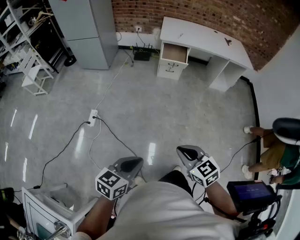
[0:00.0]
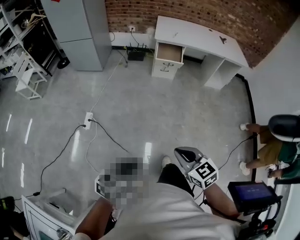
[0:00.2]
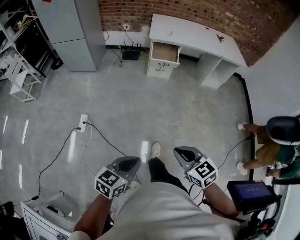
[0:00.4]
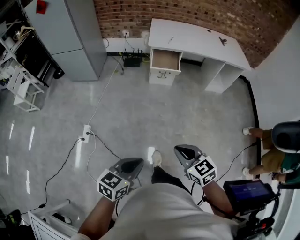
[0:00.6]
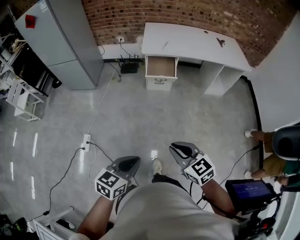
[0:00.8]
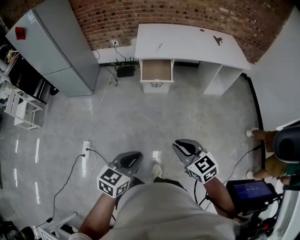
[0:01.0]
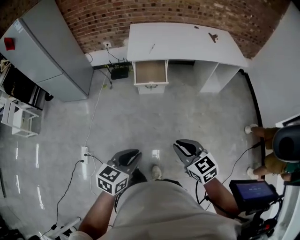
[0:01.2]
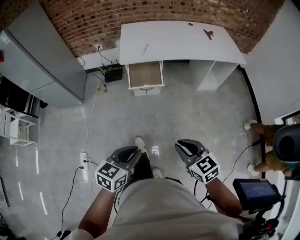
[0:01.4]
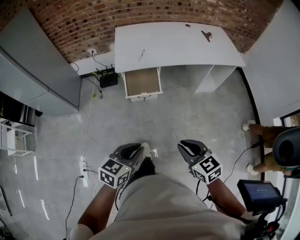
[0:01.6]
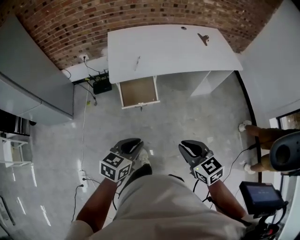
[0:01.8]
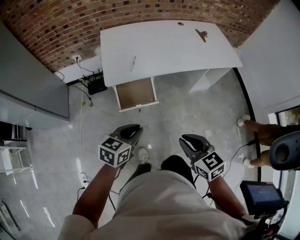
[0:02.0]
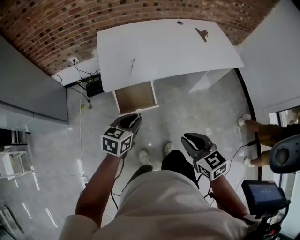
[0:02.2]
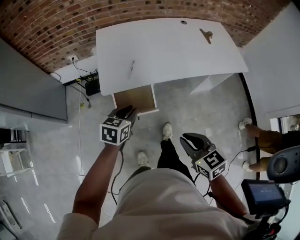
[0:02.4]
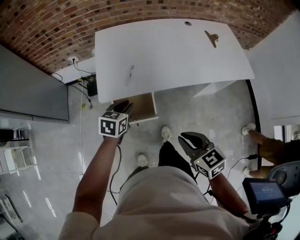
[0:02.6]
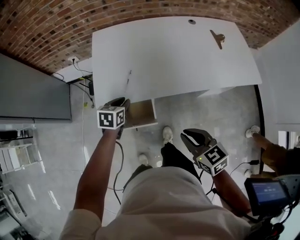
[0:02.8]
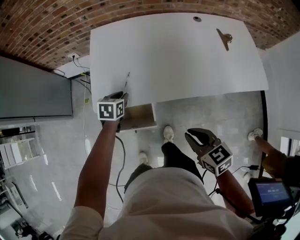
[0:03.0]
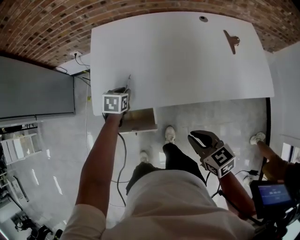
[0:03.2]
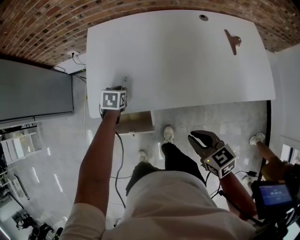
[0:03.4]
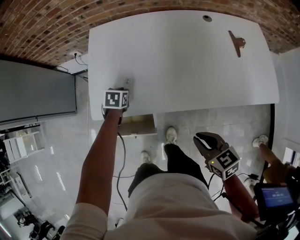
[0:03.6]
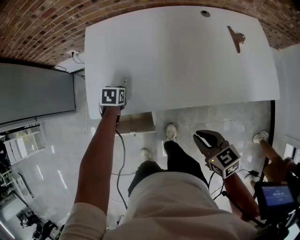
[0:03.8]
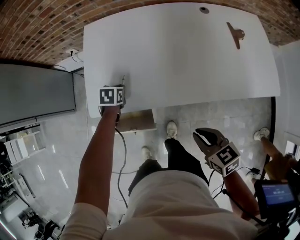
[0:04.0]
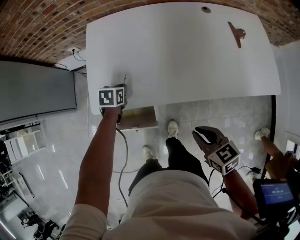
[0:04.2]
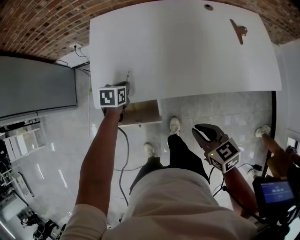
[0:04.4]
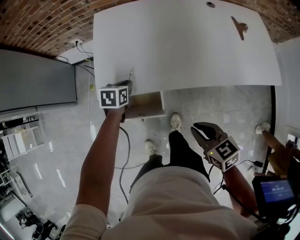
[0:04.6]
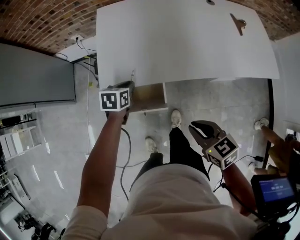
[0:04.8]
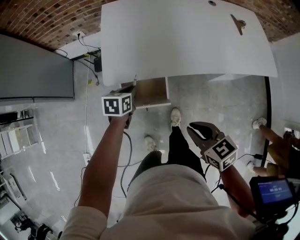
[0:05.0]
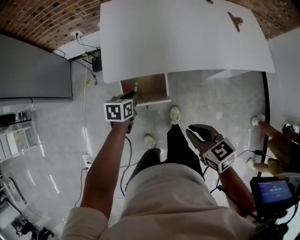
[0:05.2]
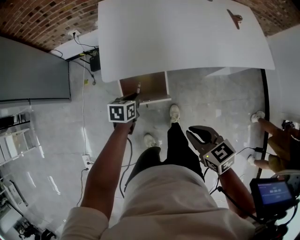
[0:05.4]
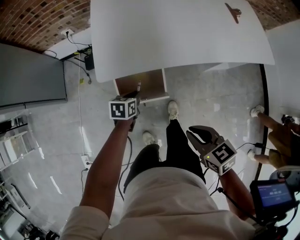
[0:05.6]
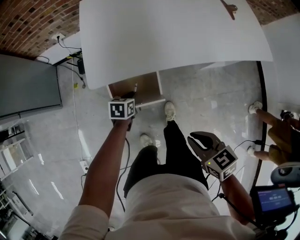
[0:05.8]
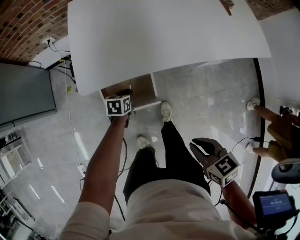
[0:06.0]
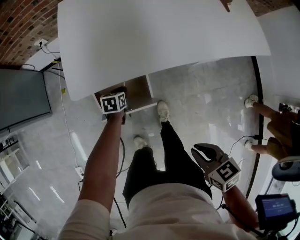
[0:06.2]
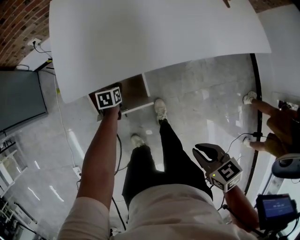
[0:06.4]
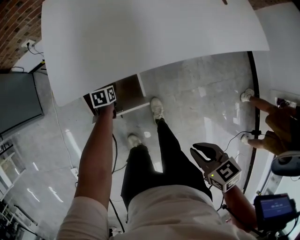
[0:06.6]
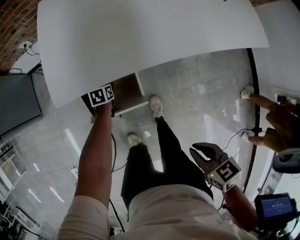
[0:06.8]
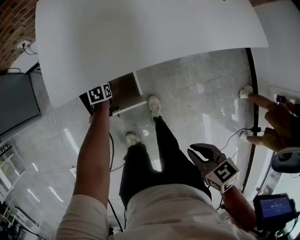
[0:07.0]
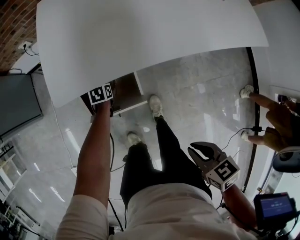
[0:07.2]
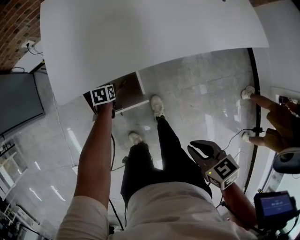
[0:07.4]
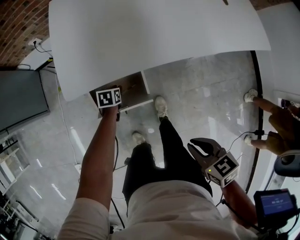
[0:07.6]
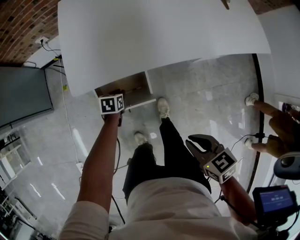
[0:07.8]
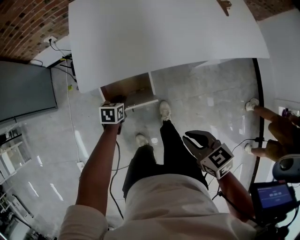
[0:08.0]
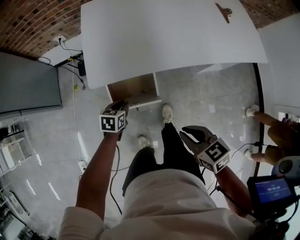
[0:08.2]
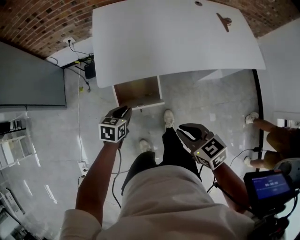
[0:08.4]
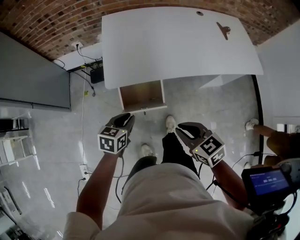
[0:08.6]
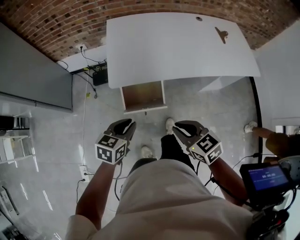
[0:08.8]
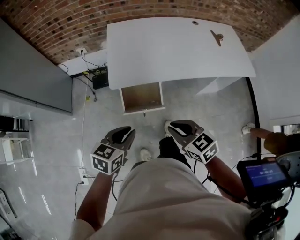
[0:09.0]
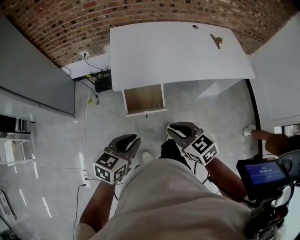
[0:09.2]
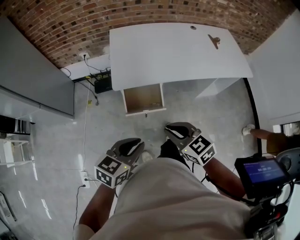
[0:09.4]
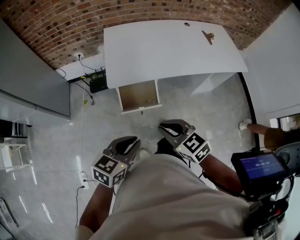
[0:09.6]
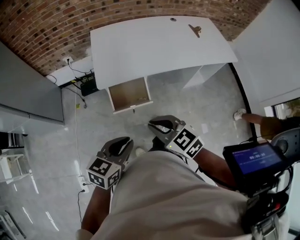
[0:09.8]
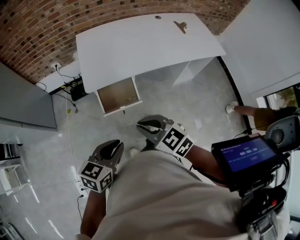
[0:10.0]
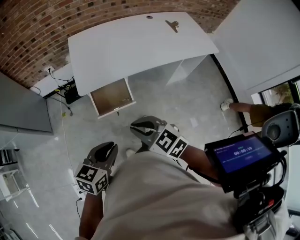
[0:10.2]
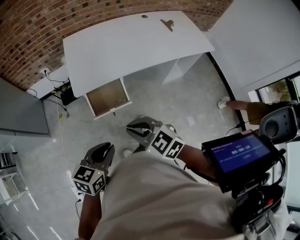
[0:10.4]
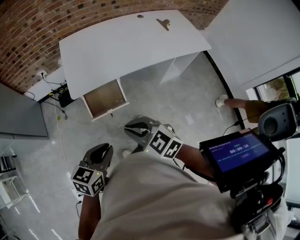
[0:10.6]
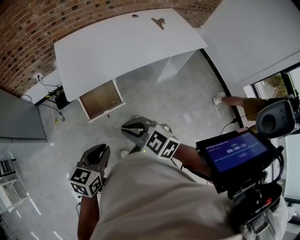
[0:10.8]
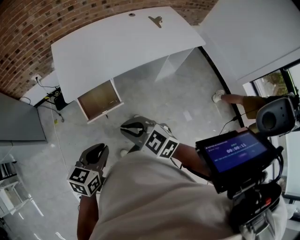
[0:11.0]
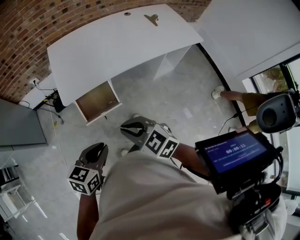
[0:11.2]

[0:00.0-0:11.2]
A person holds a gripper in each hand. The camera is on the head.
0:00.0 to 0:01.6: Both grippers are carried forward, about 50 cm.
0:01.6 to 0:03.2: The pair of grippers is taken approximately 60 cm. The left gripper rotates about 30 degrees.
0:03.2 to 0:04.8: The left gripper shifts roughly 10 cm backward and to the left; the right gripper goes some 10 cm to the left.
0:04.8 to 0:06.4: The right gripper moves backward and downward, approximately 15 cm, and swivels some 20 degrees; the left gripper heads downward, covering roughly 25 cm.
0:06.4 to 0:08.0: The right gripper shifts by roughly 5 cm. Meanwhile the left gripper travels upward and backward by approximately 15 cm.
0:08.0 to 0:09.6: The left gripper moves upward and backward, approximately 50 cm, and swivels about 30 degrees, while the right gripper travels upward, to the left and backward by some 20 cm, and changes its angle by about 30 degrees.
0:09.6 to 0:11.2: The left gripper shifts by about 5 cm.

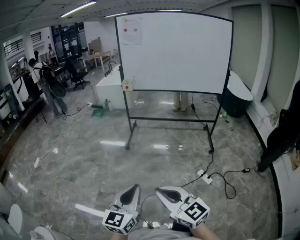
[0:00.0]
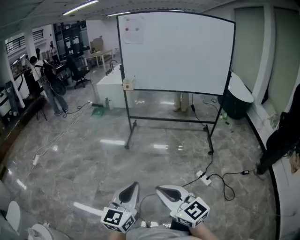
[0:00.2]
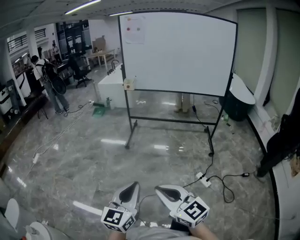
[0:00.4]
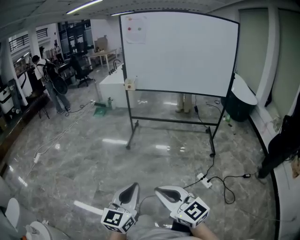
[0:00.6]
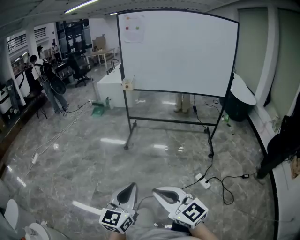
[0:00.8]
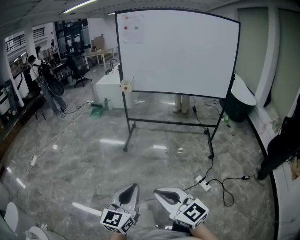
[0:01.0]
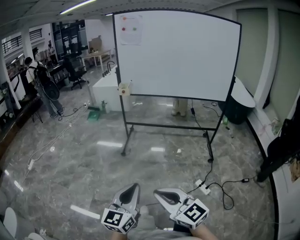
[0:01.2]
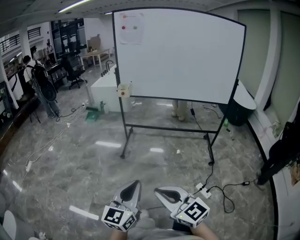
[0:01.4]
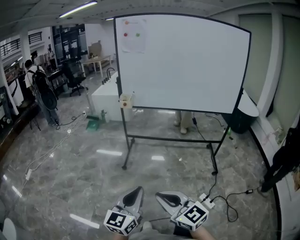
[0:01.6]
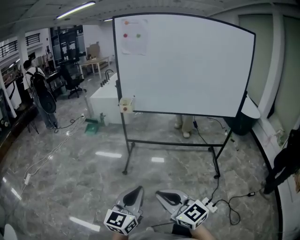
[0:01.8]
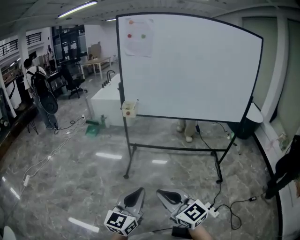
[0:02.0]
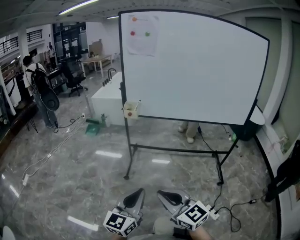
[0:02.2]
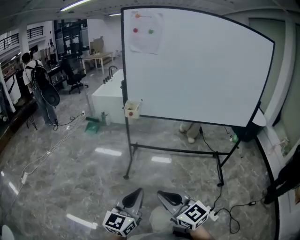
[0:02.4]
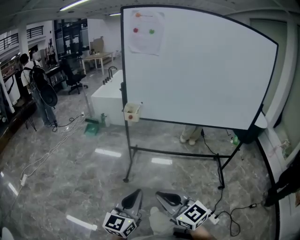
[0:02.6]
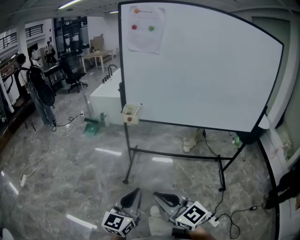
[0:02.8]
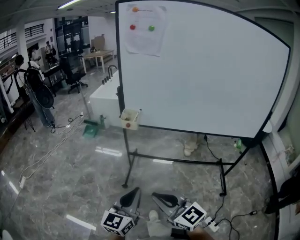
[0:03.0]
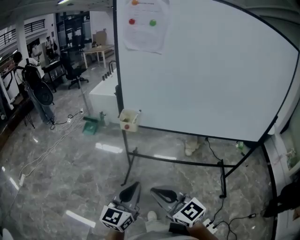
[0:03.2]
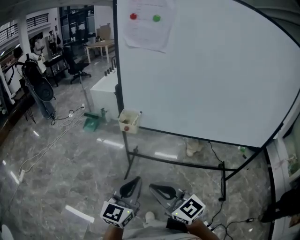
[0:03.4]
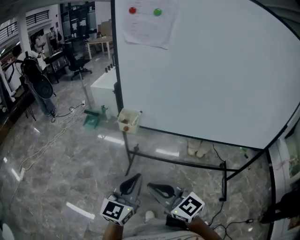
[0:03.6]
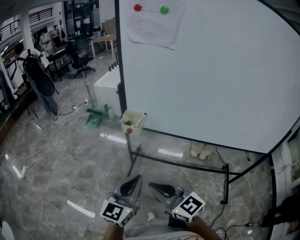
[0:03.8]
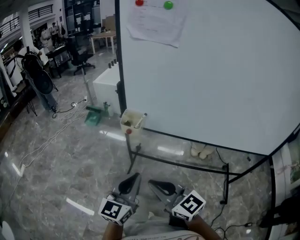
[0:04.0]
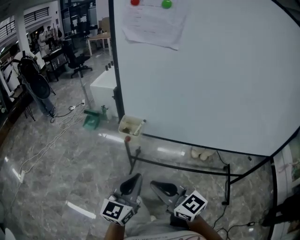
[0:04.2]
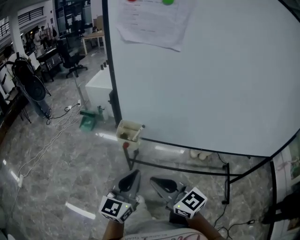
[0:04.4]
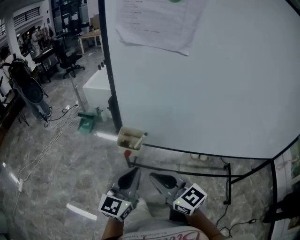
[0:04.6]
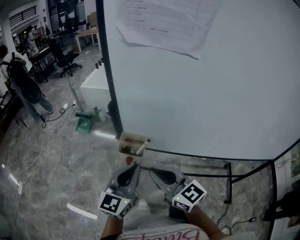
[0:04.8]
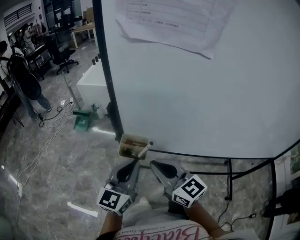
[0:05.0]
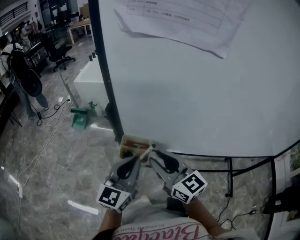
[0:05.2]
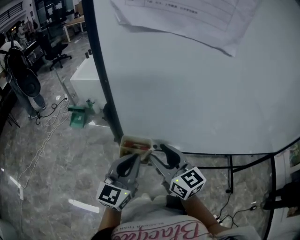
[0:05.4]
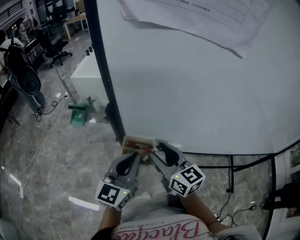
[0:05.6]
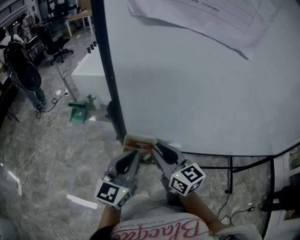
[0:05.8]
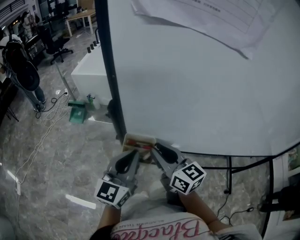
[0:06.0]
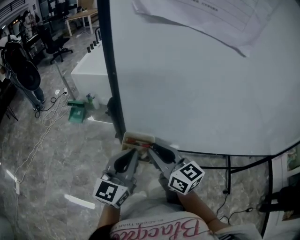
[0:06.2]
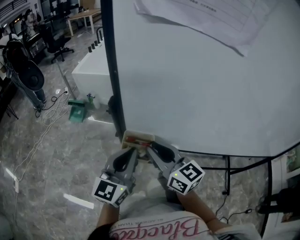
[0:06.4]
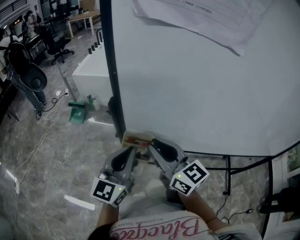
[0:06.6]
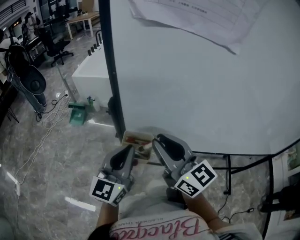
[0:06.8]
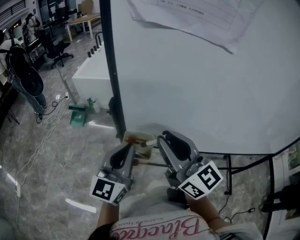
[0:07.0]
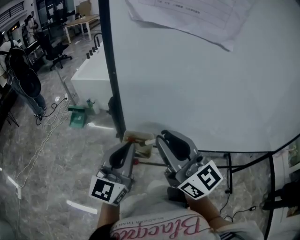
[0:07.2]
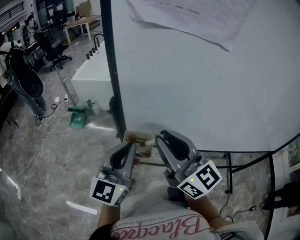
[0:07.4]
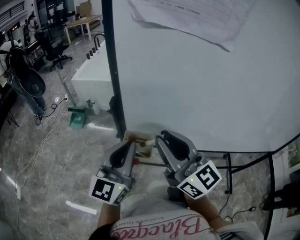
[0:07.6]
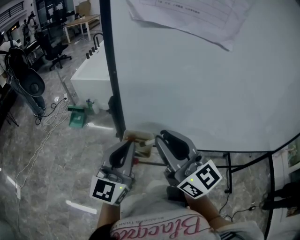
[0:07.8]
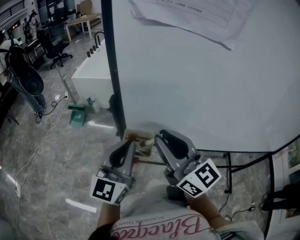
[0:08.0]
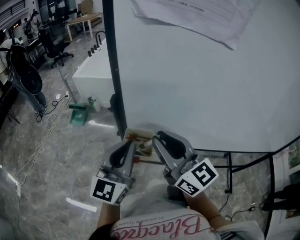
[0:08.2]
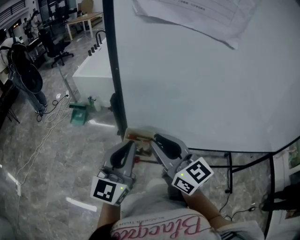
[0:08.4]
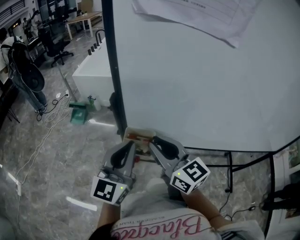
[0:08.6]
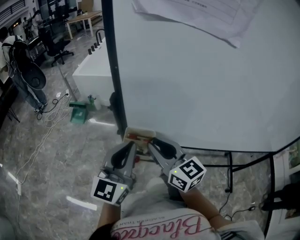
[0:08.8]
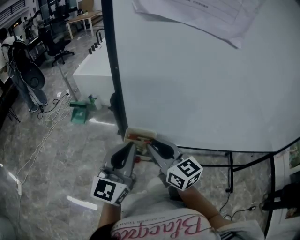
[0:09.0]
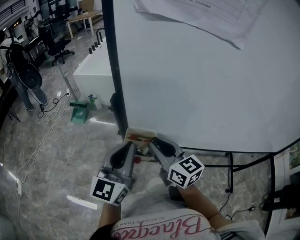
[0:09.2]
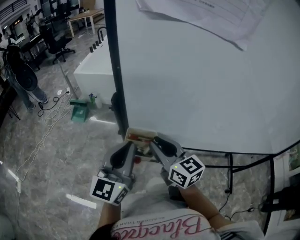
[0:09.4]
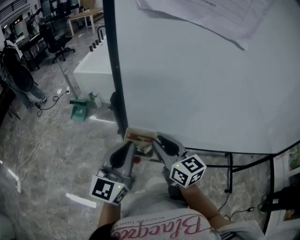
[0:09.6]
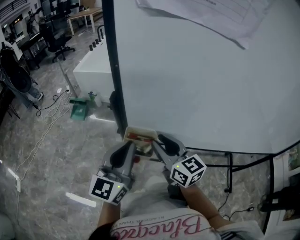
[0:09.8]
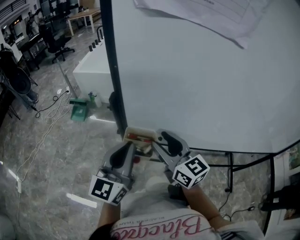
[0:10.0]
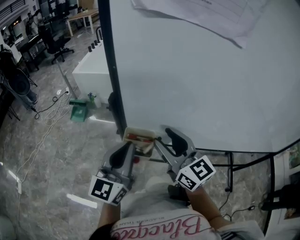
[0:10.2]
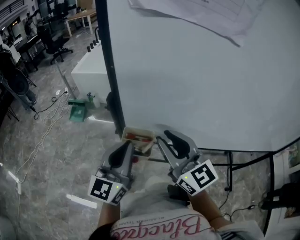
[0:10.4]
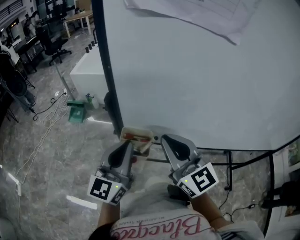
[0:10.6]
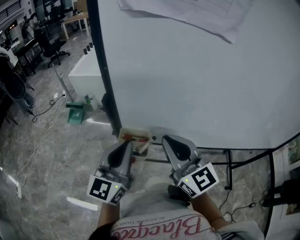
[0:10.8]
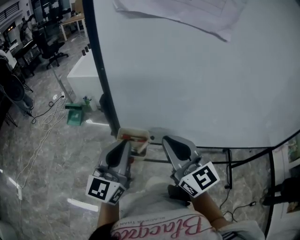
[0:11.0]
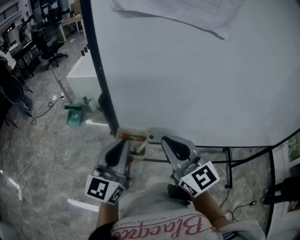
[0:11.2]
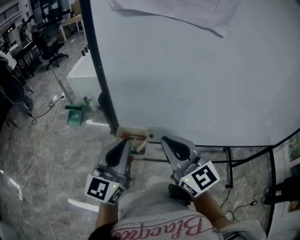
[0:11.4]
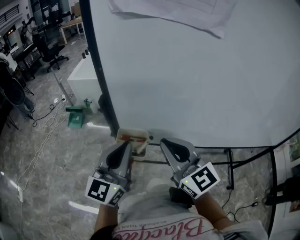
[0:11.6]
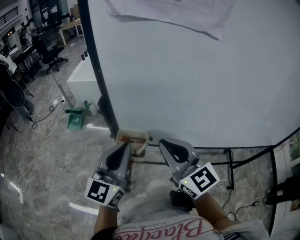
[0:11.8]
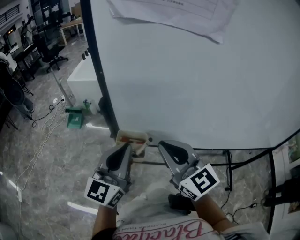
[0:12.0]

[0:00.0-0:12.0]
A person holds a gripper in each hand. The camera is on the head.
0:00.0 to 0:01.6: Both grippers travel together forward, some 20 cm.
0:01.6 to 0:03.0: The grippers both shift forward by about 25 cm.
0:03.0 to 0:04.4: The two grippers go about 25 cm forward.
0:04.4 to 0:06.0: Both grippers travel together forward, approximately 20 cm. The right gripper swivels some 20 degrees, and opens and closes again.
0:06.0 to 0:07.6: The right gripper travels upward by approximately 15 cm, and swivels some 20 degrees; the left gripper goes about 5 cm upward.
0:07.6 to 0:09.0: The right gripper heads downward, covering approximately 15 cm, and turns by some 20 degrees.
0:09.0 to 0:10.4: The right gripper shifts roughly 5 cm upward.
0:10.4 to 0:12.0: The right gripper closes.

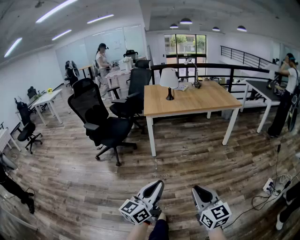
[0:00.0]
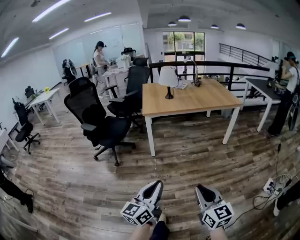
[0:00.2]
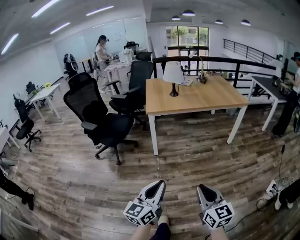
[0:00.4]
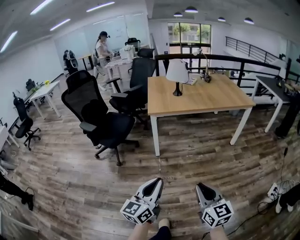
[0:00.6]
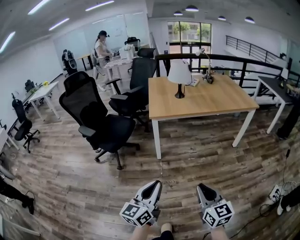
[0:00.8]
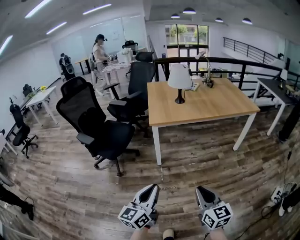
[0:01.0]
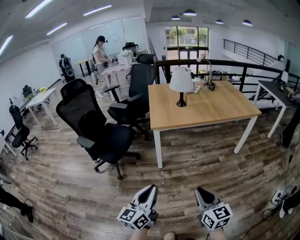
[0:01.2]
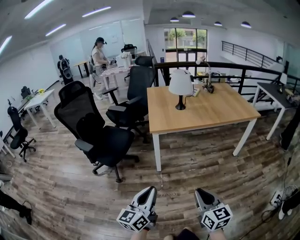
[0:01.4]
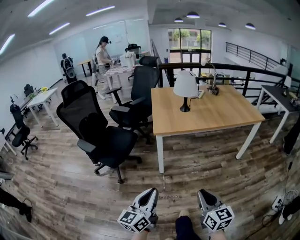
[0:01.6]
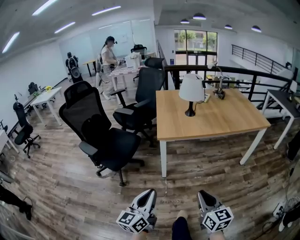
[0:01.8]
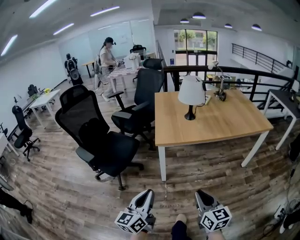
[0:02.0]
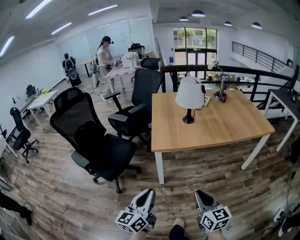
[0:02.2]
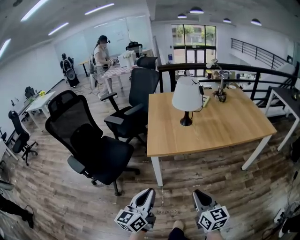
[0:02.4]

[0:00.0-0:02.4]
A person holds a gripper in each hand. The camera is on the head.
0:00.0 to 0:01.2: The left gripper travels forward and to the left by approximately 30 cm. Meanwhile the right gripper is displaced forward by roughly 30 cm.
0:01.2 to 0:02.4: The grippers both shift forward by roughly 25 cm.
